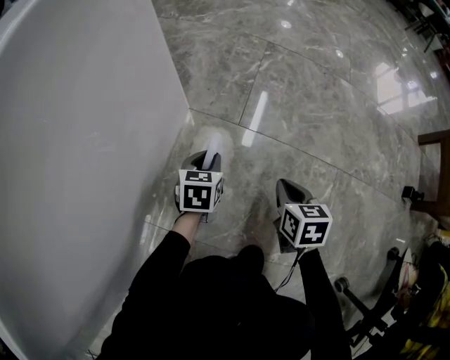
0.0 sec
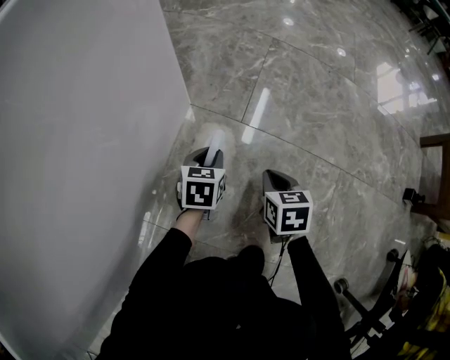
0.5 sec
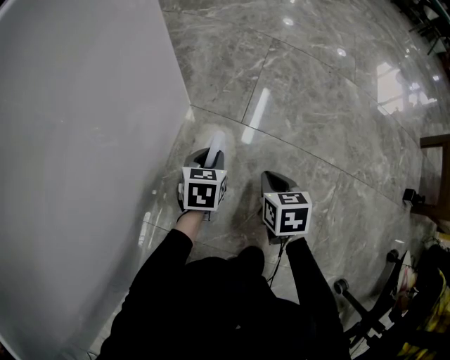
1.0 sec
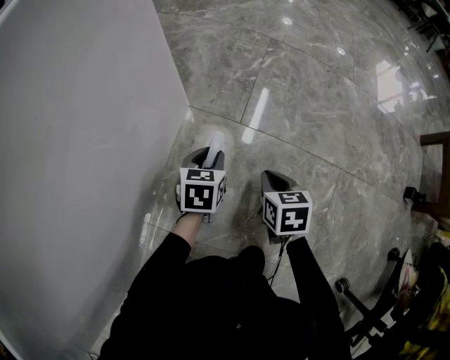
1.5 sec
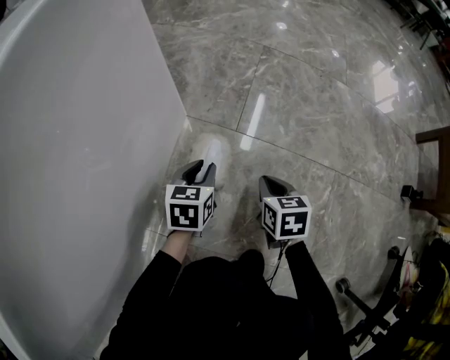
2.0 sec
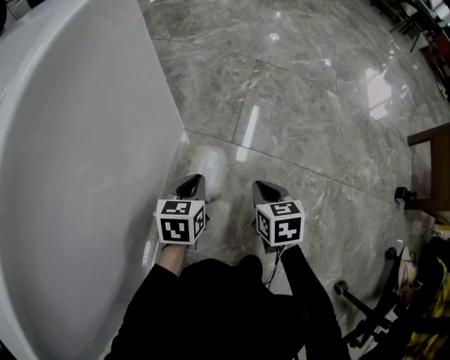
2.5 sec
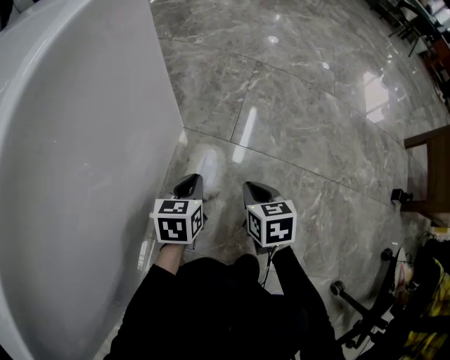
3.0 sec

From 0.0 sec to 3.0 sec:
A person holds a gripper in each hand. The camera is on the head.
From 0.0 sec to 1.5 sec: The right gripper changes place by approximately 5 cm.
From 1.5 sec to 3.0 sec: Both grippers move upward, approximately 5 cm. The left gripper closes.

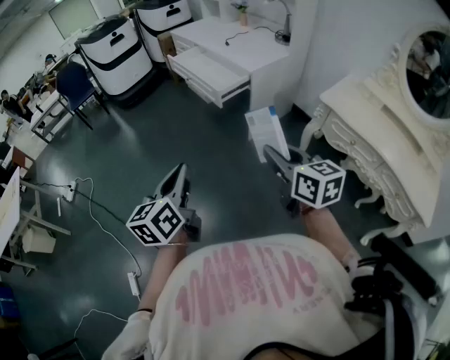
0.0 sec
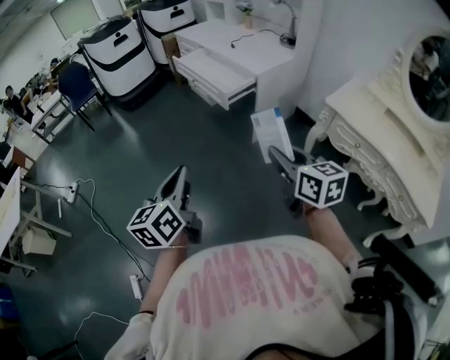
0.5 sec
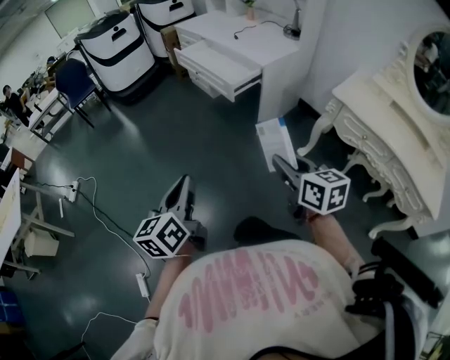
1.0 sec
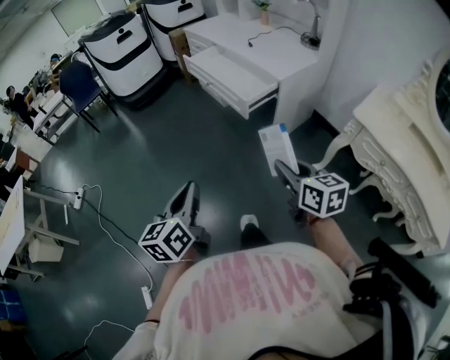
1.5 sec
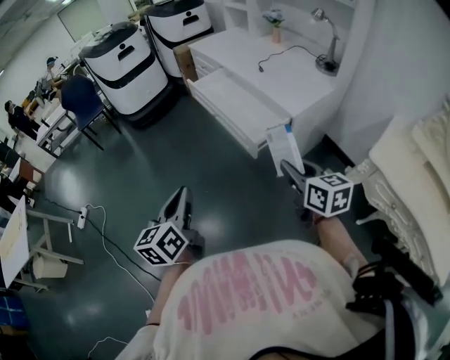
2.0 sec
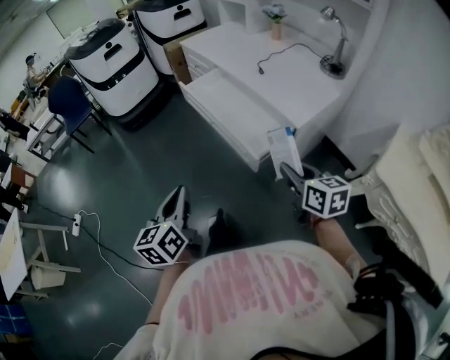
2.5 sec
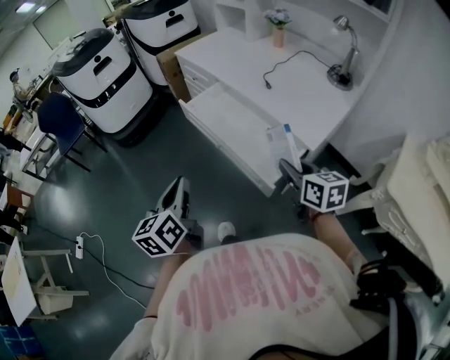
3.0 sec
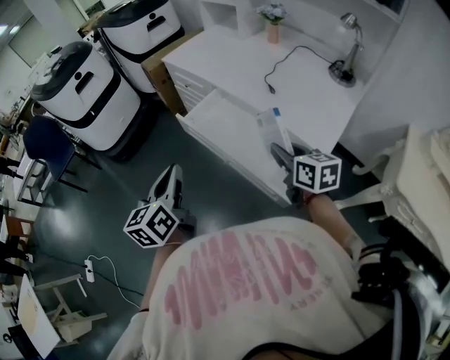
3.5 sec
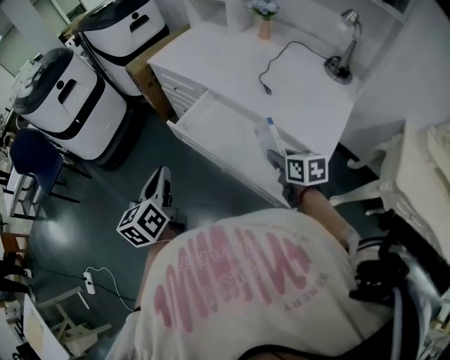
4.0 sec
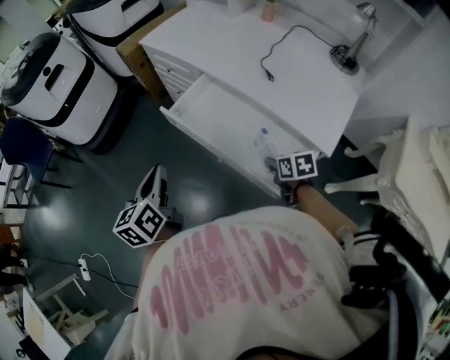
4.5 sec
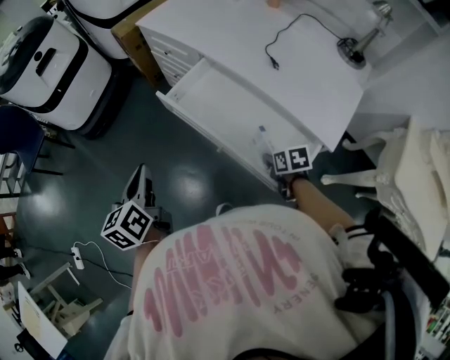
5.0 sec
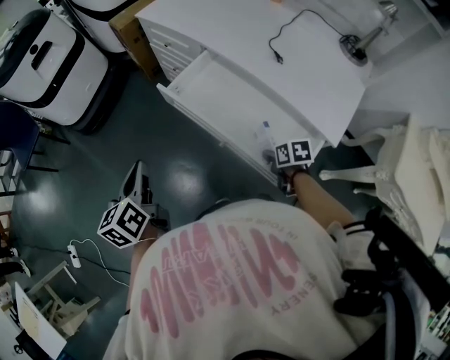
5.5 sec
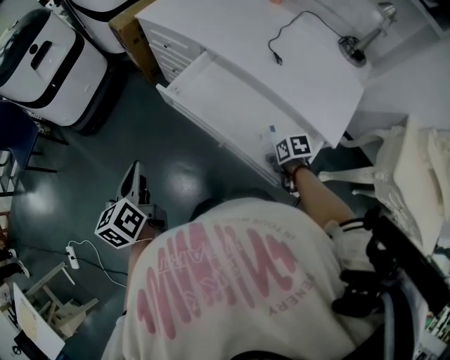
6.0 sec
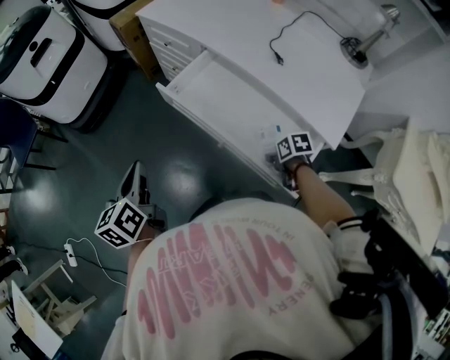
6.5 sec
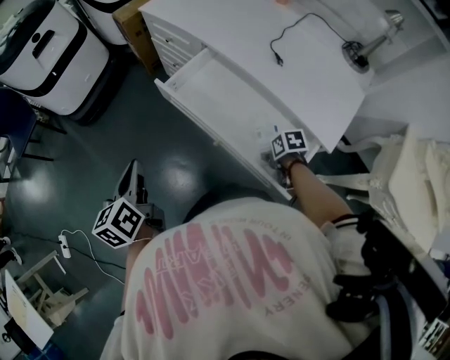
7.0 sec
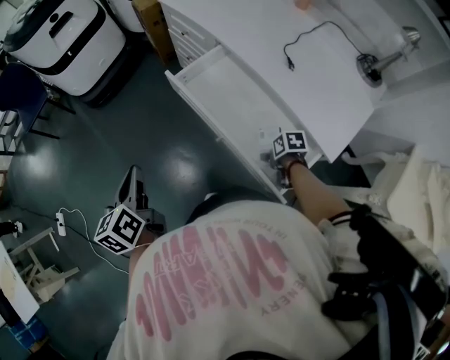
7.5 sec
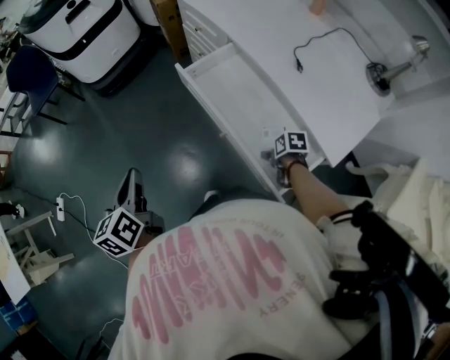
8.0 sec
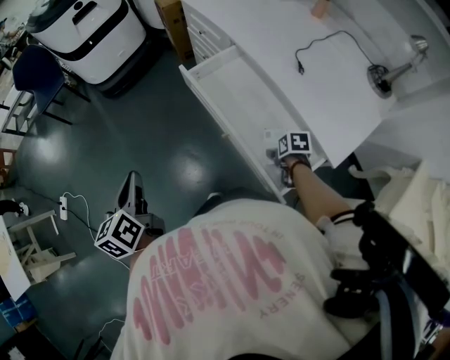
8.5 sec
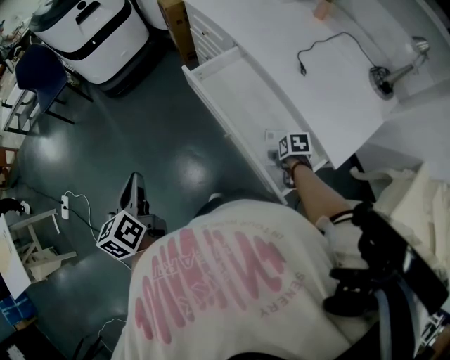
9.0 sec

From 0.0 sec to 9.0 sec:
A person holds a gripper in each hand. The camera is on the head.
From 0.0 sec to 2.0 sec: The two grippers go some 30 cm forward.
From 2.0 sec to 4.5 sec: The right gripper moves forward and downward, approximately 40 cm, and tips its fingers downward by some 30 degrees, while the left gripper moves forward, roughly 50 cm.
From 4.5 sec to 7.0 sec: The right gripper travels downward by roughly 10 cm, and turns by some 30 degrees. Meanwhile the left gripper heads to the left, covering approximately 5 cm.
From 7.0 sec to 9.0 sec: The right gripper opens its fingers. The left gripper changes place by roughly 10 cm.

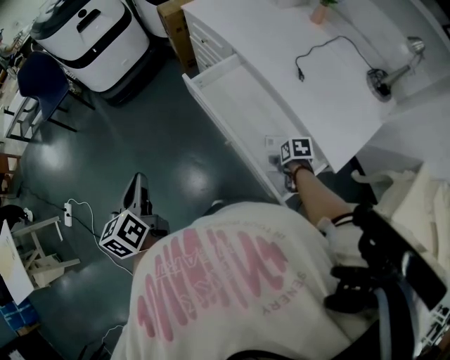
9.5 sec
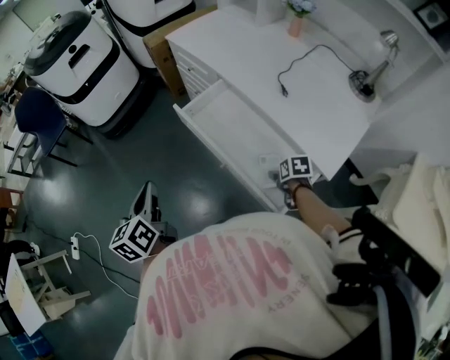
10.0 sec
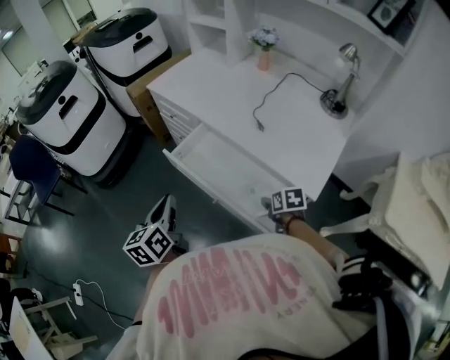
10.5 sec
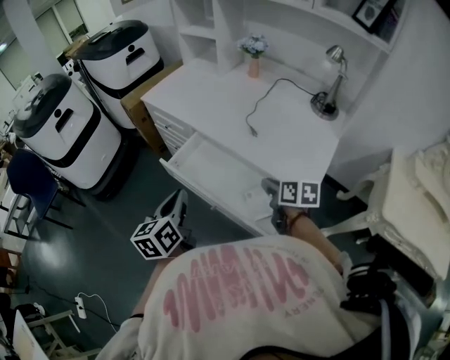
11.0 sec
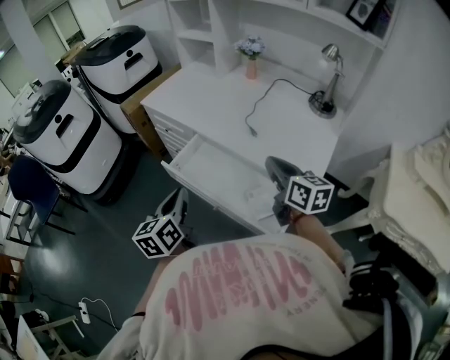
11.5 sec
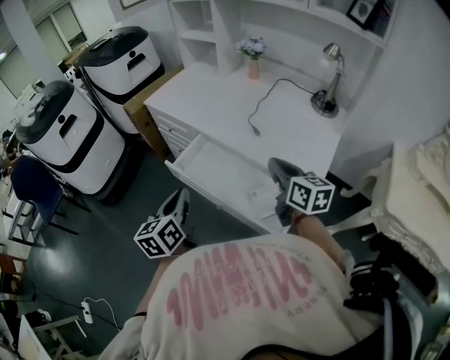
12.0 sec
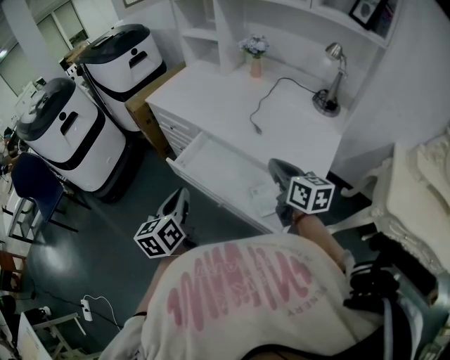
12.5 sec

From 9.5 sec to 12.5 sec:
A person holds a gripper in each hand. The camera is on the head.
From 9.5 sec to 11.0 sec: The left gripper moves some 20 cm, and rotates about 30 degrees, while the right gripper heads upward, covering roughly 20 cm, angles its fingers upward, by approximately 40 degrees, and closes its fingers.
From 11.0 sec to 12.5 sec: The right gripper goes some 10 cm upward, and turns by about 20 degrees.

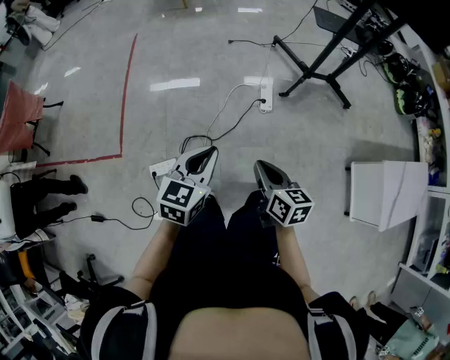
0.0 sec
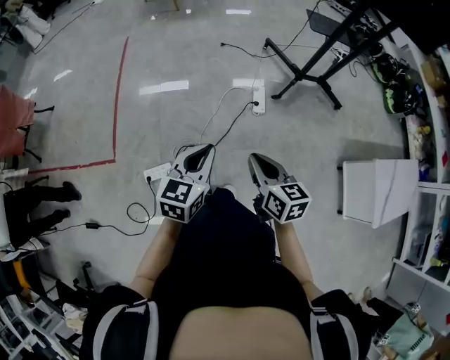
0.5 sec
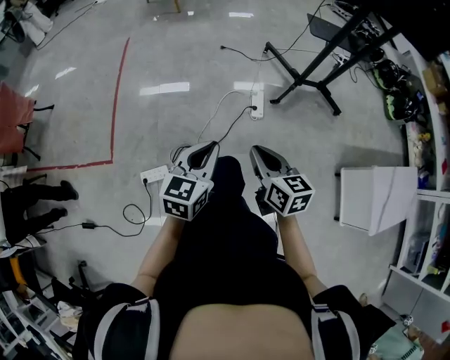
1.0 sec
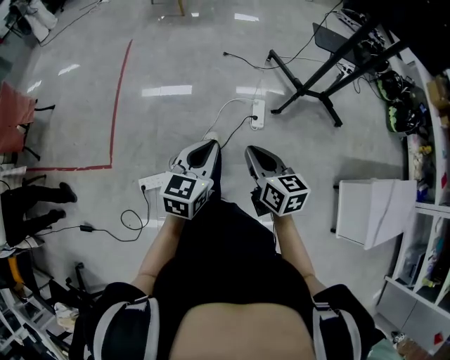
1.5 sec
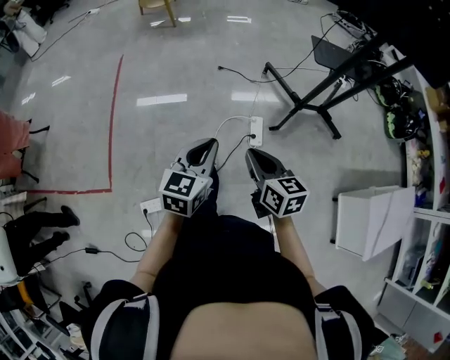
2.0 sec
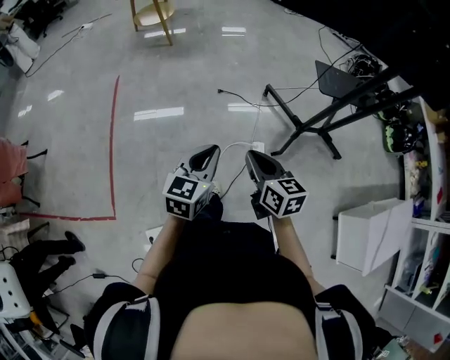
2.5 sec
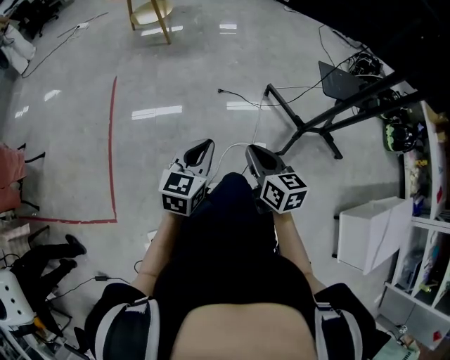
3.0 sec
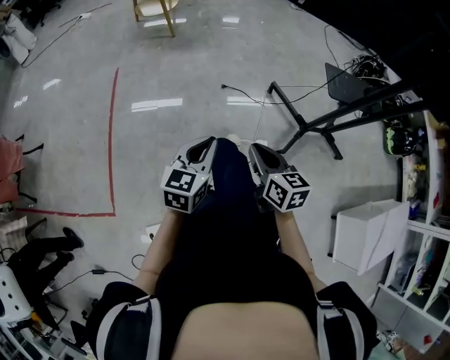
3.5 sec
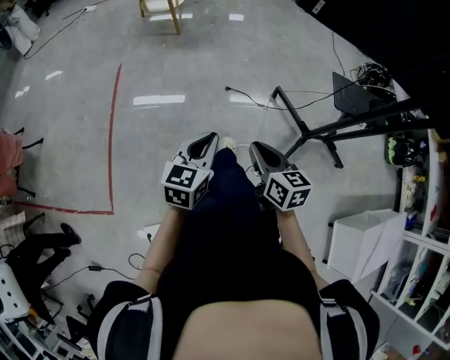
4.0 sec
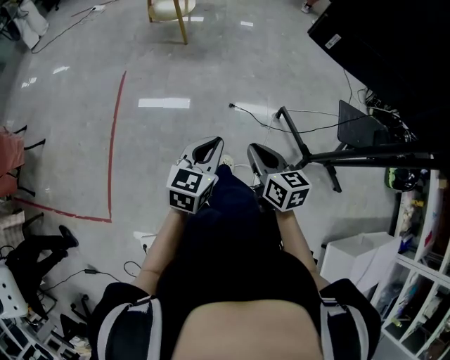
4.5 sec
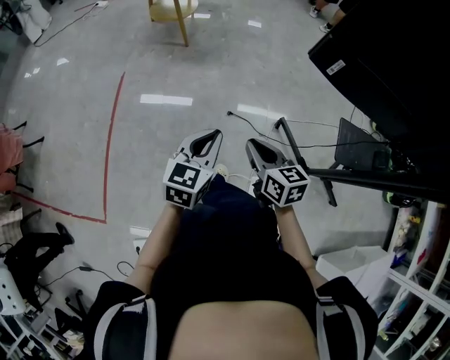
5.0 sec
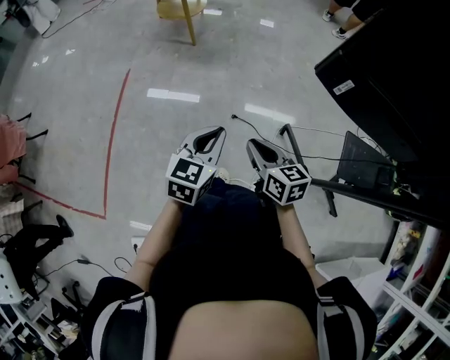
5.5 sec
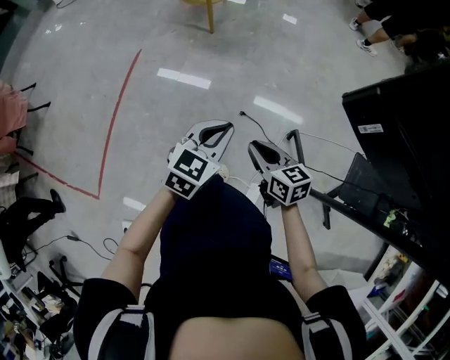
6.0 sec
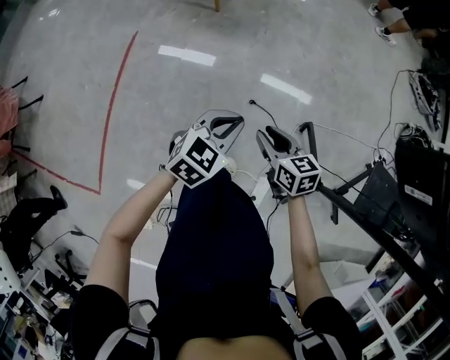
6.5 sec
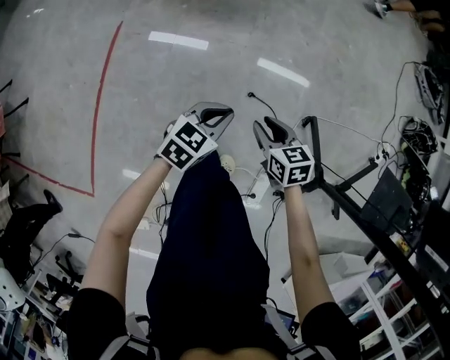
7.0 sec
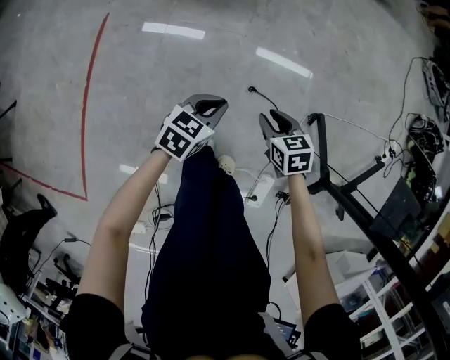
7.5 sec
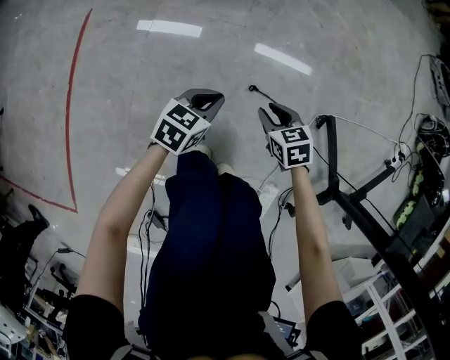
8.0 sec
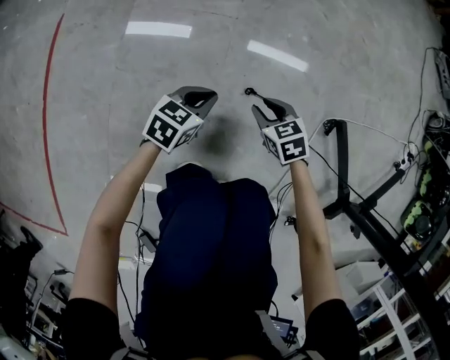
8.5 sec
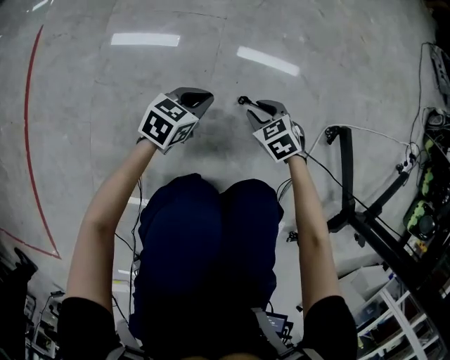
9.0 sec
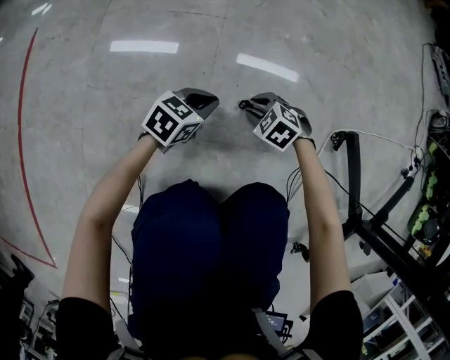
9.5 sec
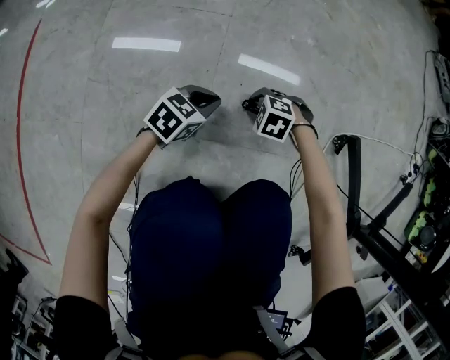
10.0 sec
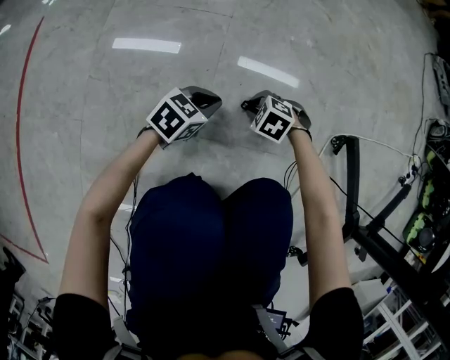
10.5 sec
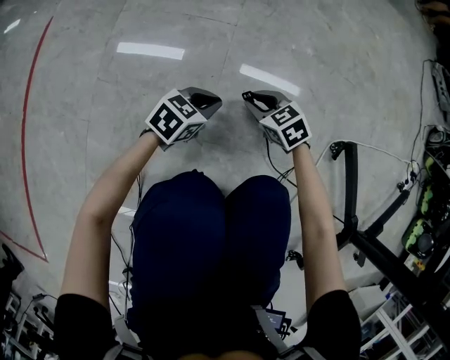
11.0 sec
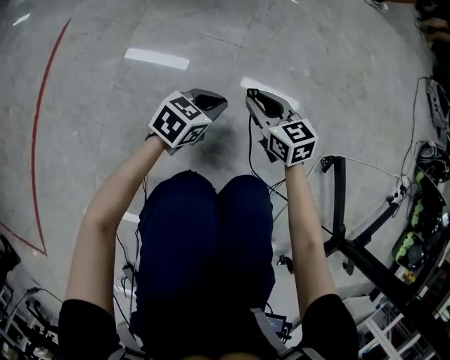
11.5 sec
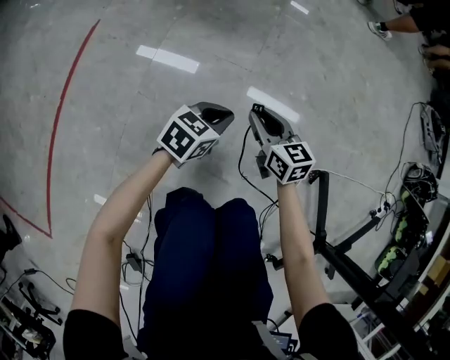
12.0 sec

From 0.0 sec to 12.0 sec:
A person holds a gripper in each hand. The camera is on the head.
From 0.0 sec to 2.0 sec: Both grippers travel together forward, approximately 25 cm.
From 2.0 sec to 4.0 sec: Both grippers travel together forward, about 25 cm.
From 4.0 sec to 6.0 sec: Both grippers move forward, about 30 cm. The right gripper swivels roughly 30 degrees.
From 6.0 sec to 8.0 sec: Both grippers move downward, roughly 50 cm. The right gripper changes its angle by approximately 30 degrees, and opens up. Meanwhile the left gripper changes its angle by some 20 degrees.
From 8.0 sec to 10.0 sec: The grippers both shift downward by about 30 cm. The right gripper rolls counterclockwise, seen from behind, by about 50 degrees.
From 10.0 sec to 12.0 sec: Both grippers move upward, some 25 cm. The right gripper points its fingers some 50 degrees further upward.
